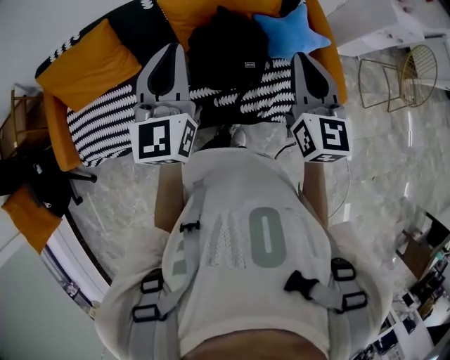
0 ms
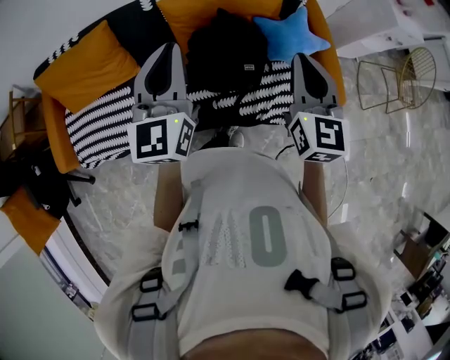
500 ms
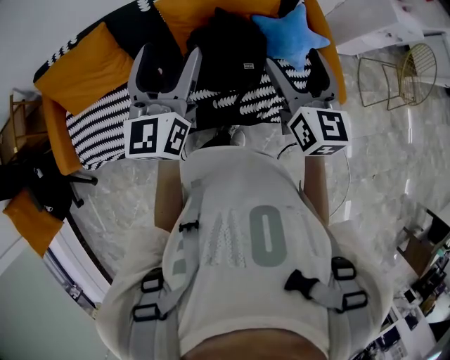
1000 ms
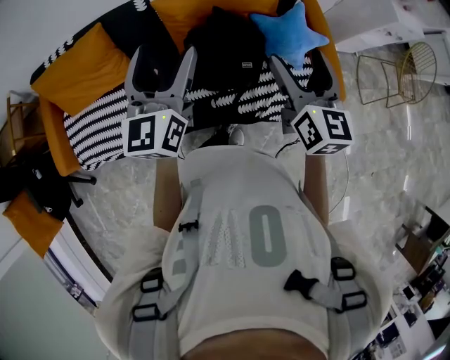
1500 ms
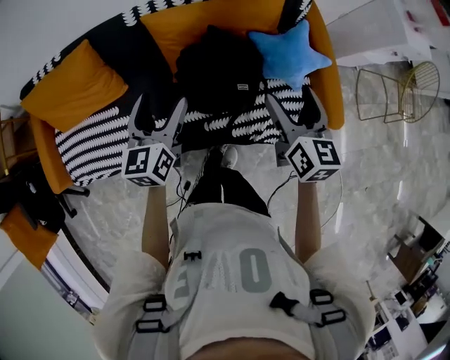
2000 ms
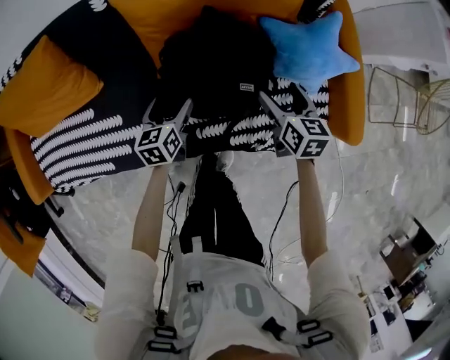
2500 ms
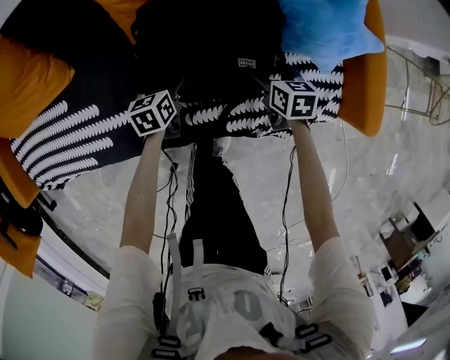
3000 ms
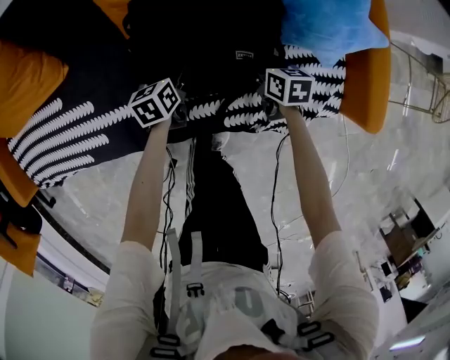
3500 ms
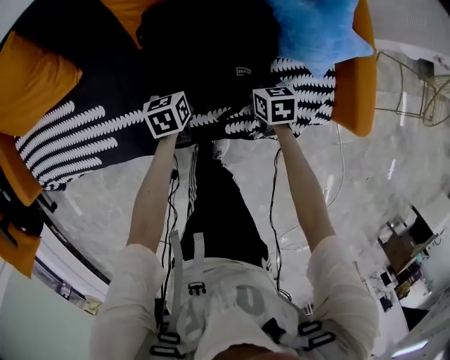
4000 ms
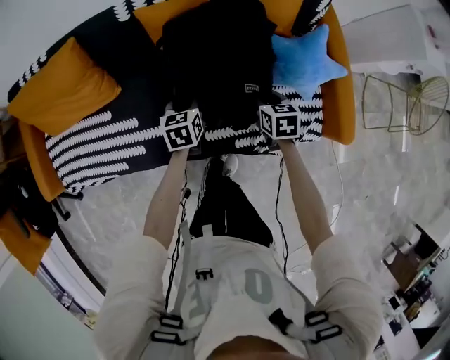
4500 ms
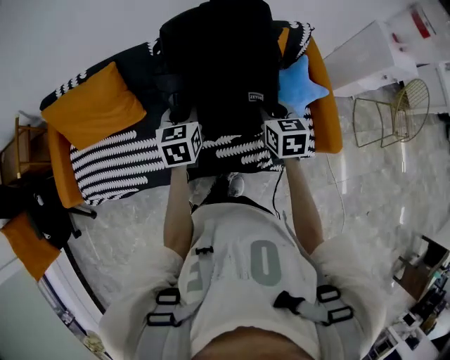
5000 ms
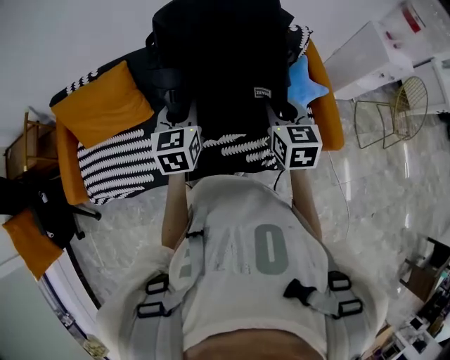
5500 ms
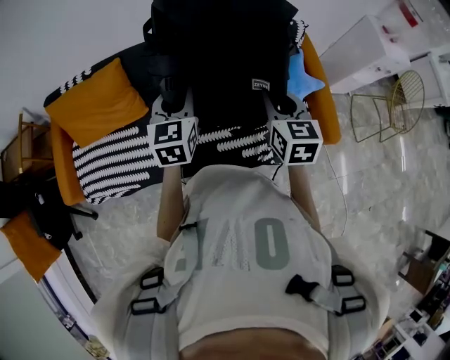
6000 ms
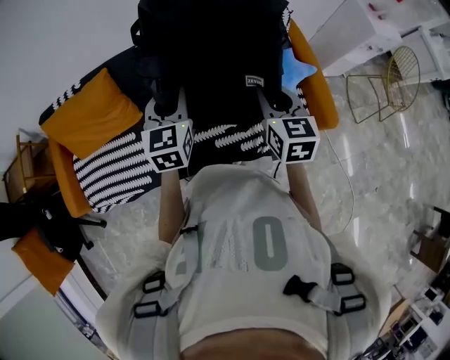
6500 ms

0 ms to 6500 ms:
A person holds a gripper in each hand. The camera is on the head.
0 ms to 2000 ms: The two grippers go roughly 15 cm downward and forward. The left gripper swivels about 20 degrees, and opens its fingers. The right gripper opens its fingers.
2000 ms to 4500 ms: Both grippers move downward, roughly 25 cm. The right gripper rotates approximately 30 degrees, and closes its fingers. The left gripper swivels roughly 30 degrees, and closes.
4500 ms to 6500 ms: The two grippers go approximately 35 cm upward. The right gripper changes its angle by some 30 degrees. The left gripper swivels about 30 degrees.

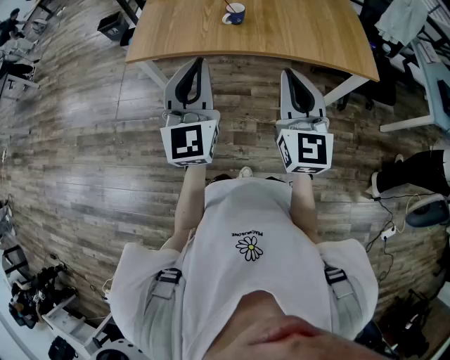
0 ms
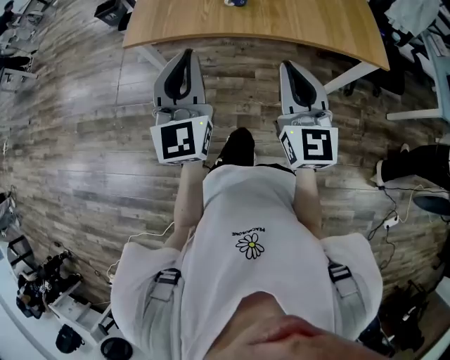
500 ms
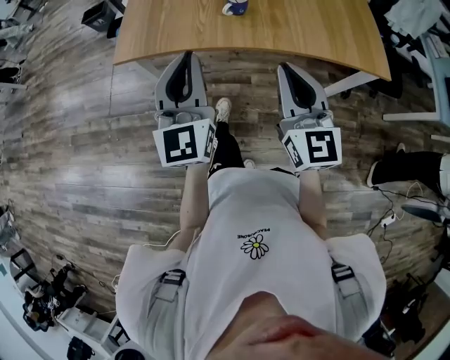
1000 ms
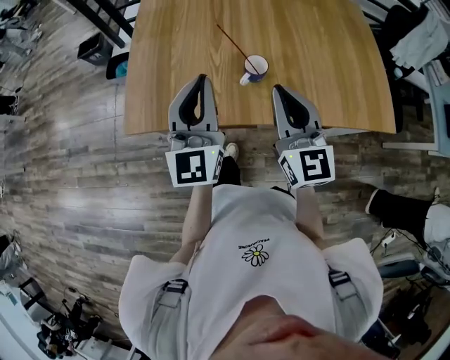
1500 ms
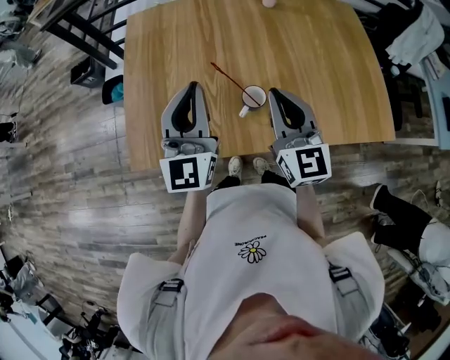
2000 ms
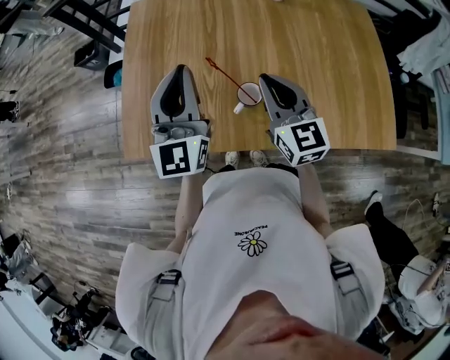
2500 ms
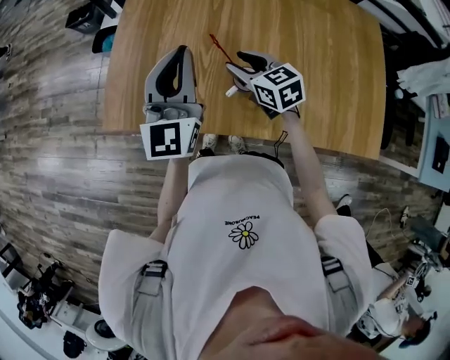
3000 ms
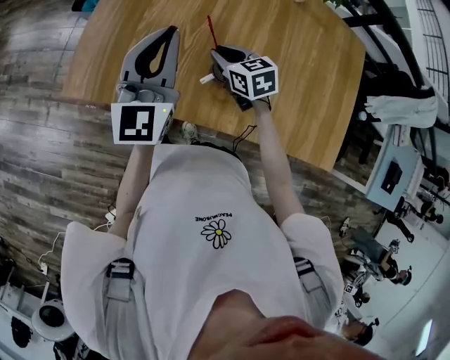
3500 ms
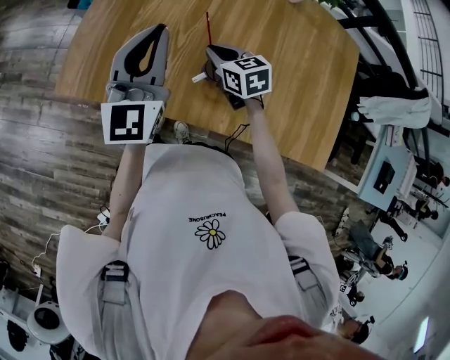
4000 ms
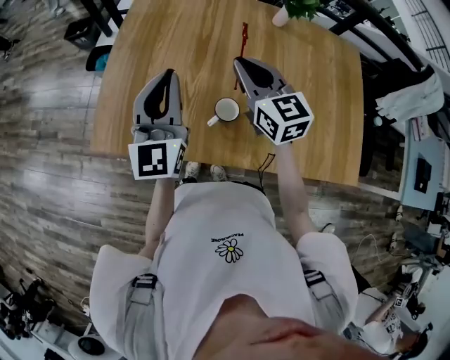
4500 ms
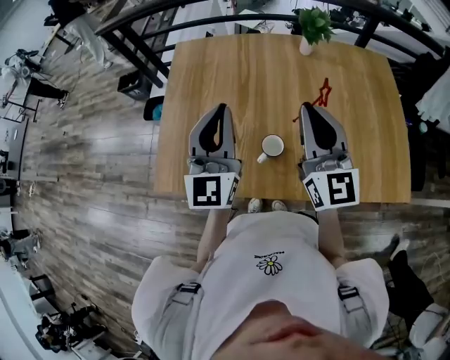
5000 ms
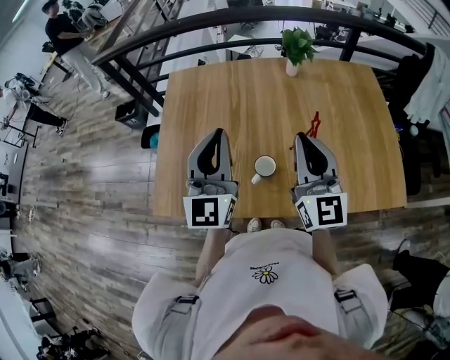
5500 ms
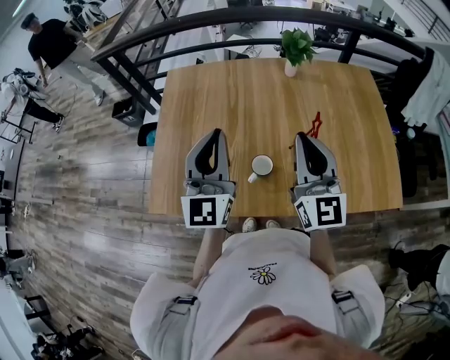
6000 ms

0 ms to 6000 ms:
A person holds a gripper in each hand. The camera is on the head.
0 ms to 2000 ms: The pair of grippers is taken forward, roughly 40 cm.
2000 ms to 4000 ms: The left gripper changes place by some 5 cm; the right gripper heads downward, covering some 20 cm, angles its fingers downward, by approximately 40 degrees, and opens and closes again.
4000 ms to 6000 ms: The left gripper is displaced upward by roughly 10 cm. The right gripper shifts approximately 30 cm upward, and tips its fingers upward by some 50 degrees.

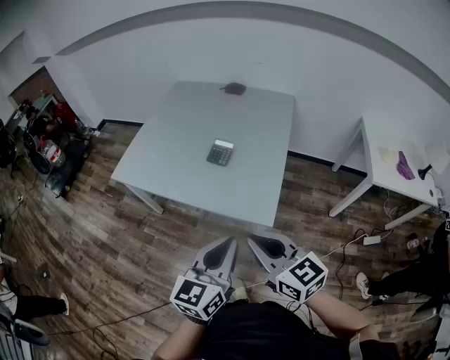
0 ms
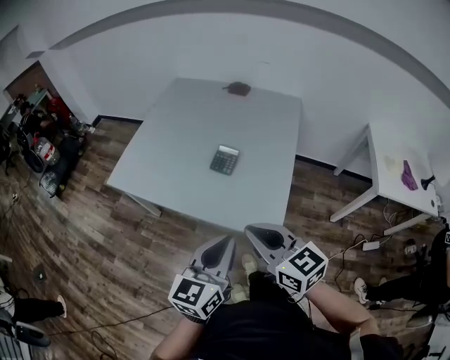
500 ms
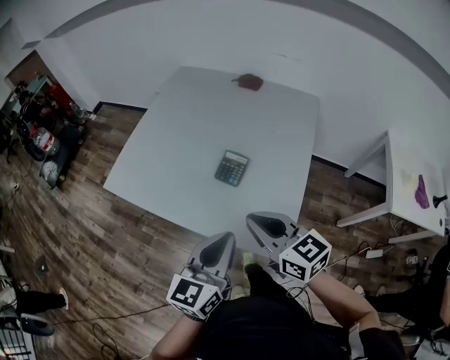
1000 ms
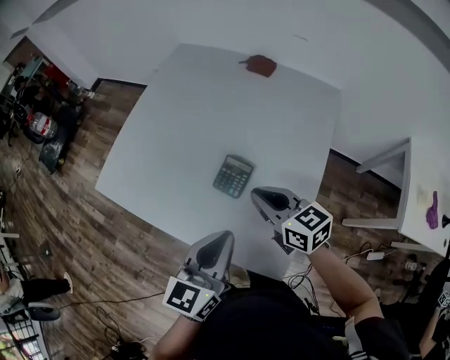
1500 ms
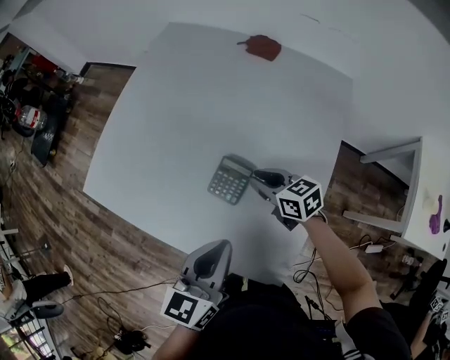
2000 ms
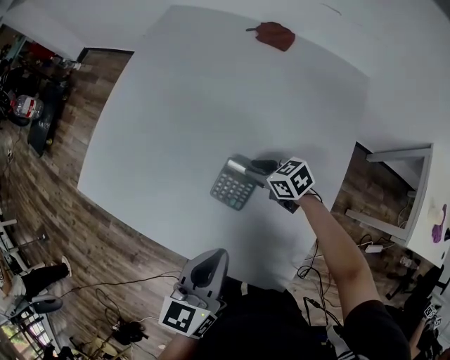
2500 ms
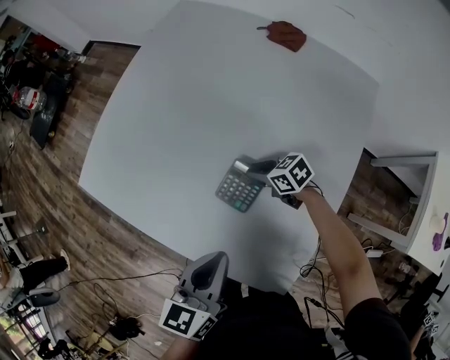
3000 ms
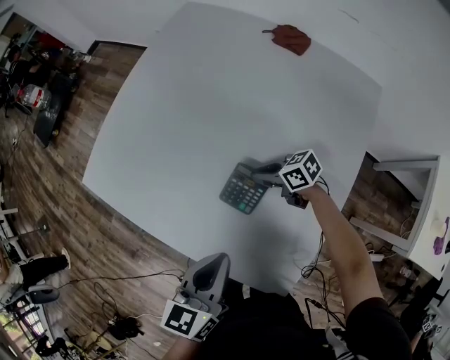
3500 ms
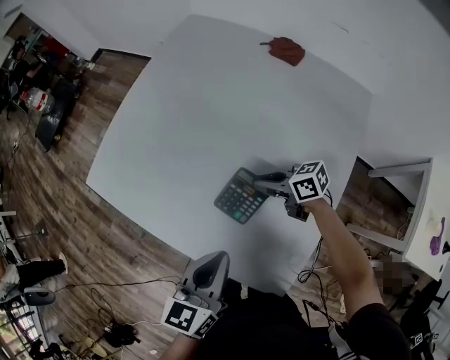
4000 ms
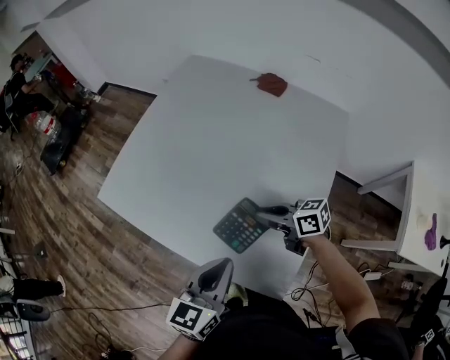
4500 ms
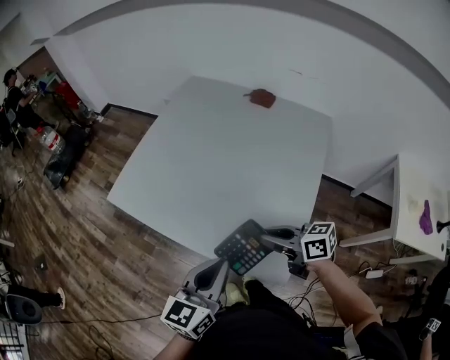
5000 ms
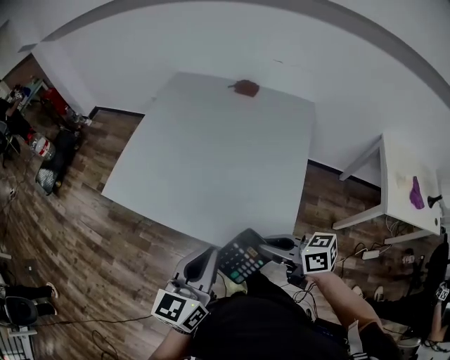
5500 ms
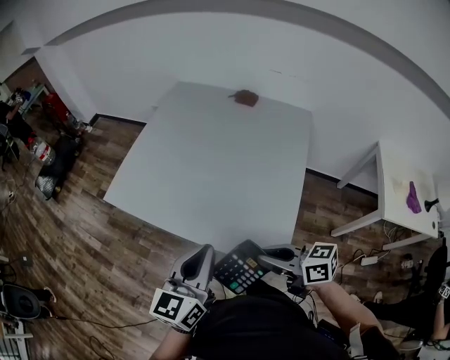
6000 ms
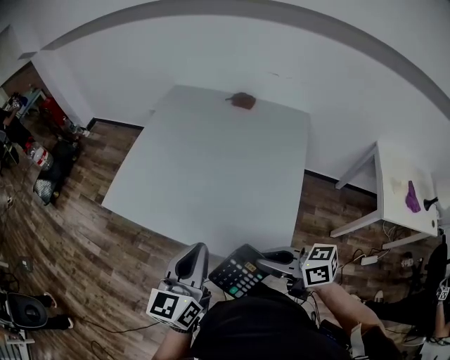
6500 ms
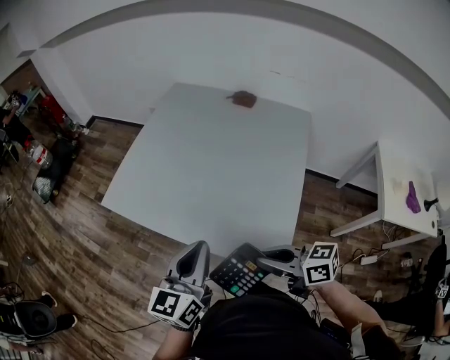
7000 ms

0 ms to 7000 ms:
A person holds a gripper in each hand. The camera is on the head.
0 ms to 2000 ms: The left gripper heads forward, covering about 35 cm. Meanwhile the right gripper moves forward and downward, about 50 cm, and changes its angle by some 30 degrees.
2000 ms to 3500 ms: The left gripper ends up about 5 cm from where it was. The right gripper goes roughly 10 cm downward, and swivels some 30 degrees.
3500 ms to 5000 ms: The right gripper is displaced upward and backward by approximately 30 cm, and rotates about 30 degrees, while the left gripper is displaced backward, upward and to the left by approximately 15 cm.
5000 ms to 7000 ms: The left gripper changes place by about 5 cm; the right gripper travels backward by roughly 10 cm.

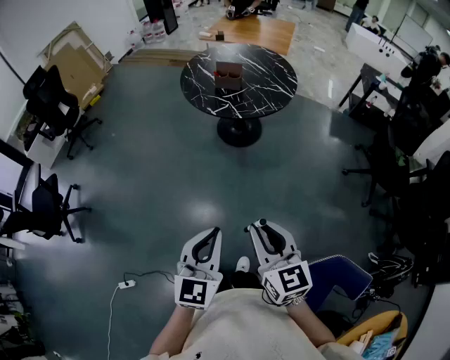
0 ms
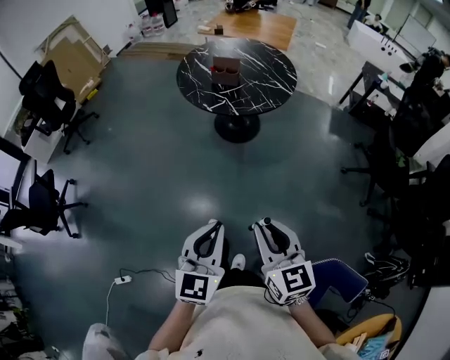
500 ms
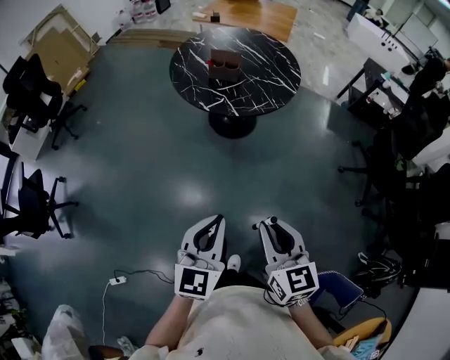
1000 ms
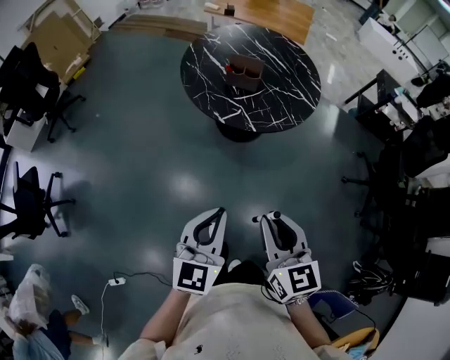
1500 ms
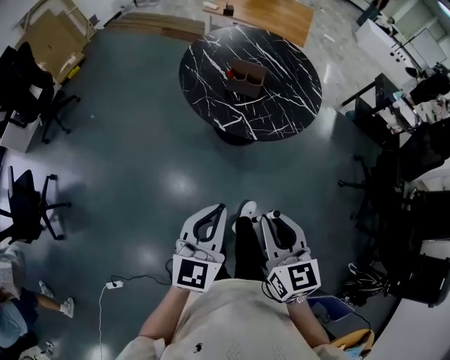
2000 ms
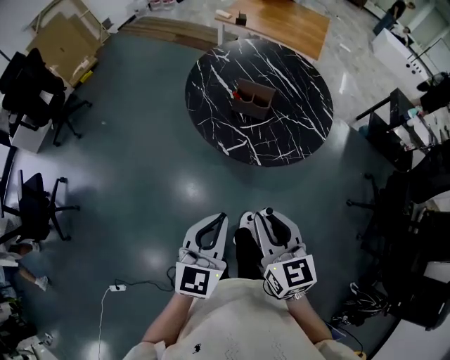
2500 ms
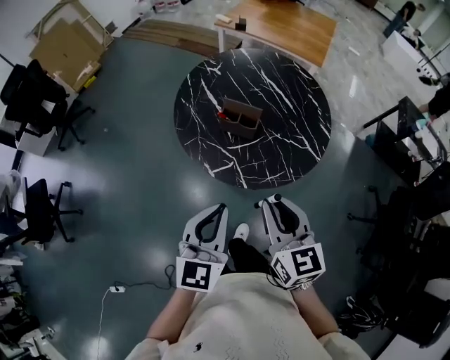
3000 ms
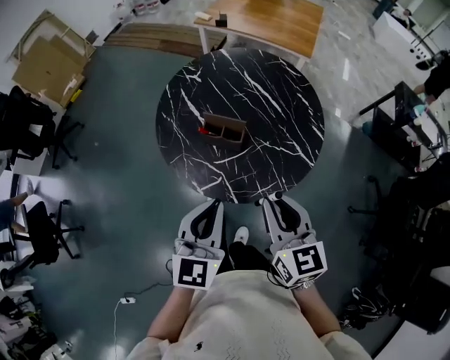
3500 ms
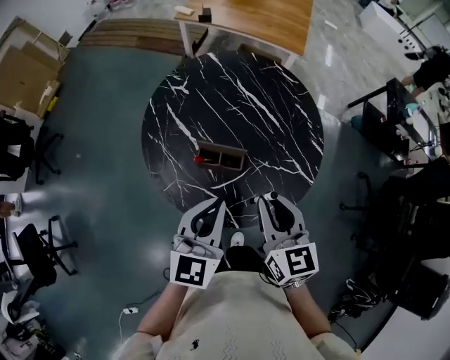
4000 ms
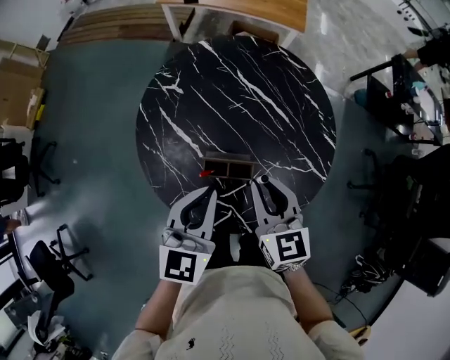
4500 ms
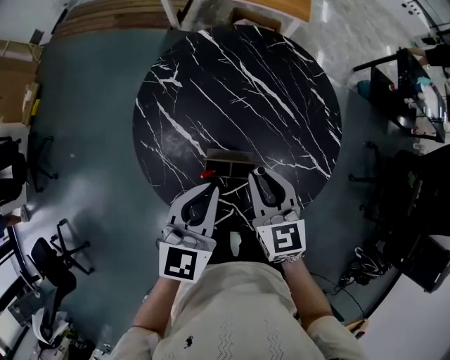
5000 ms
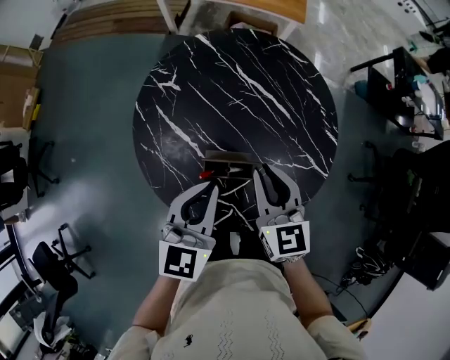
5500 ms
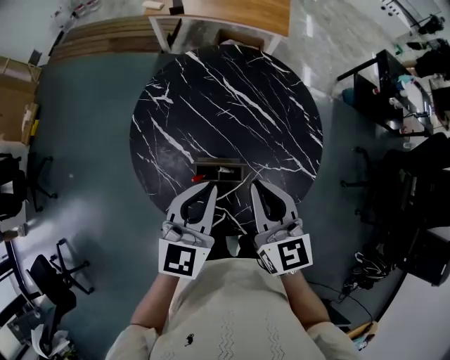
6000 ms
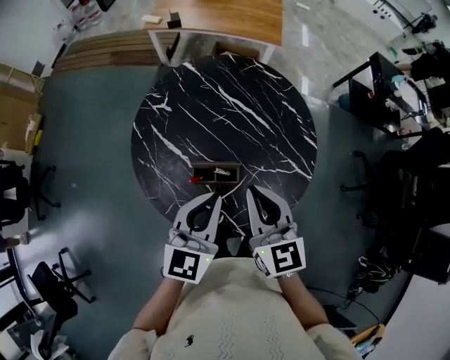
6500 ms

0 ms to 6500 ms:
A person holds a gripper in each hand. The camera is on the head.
0 ms to 2000 ms: The two grippers go roughly 30 cm forward.
2000 ms to 4500 ms: The pair of grippers is taken forward, about 60 cm.
4500 ms to 6500 ms: The right gripper goes some 5 cm upward. The left gripper changes place by approximately 5 cm.
